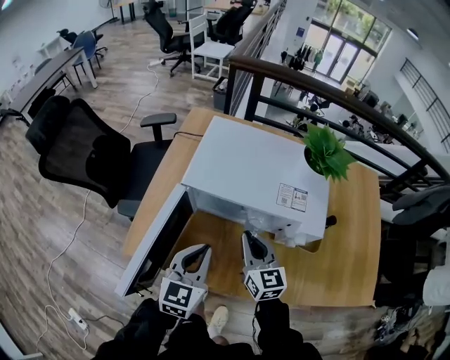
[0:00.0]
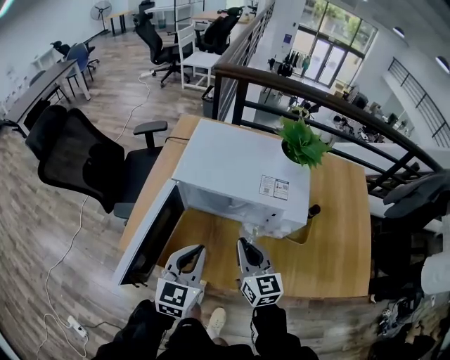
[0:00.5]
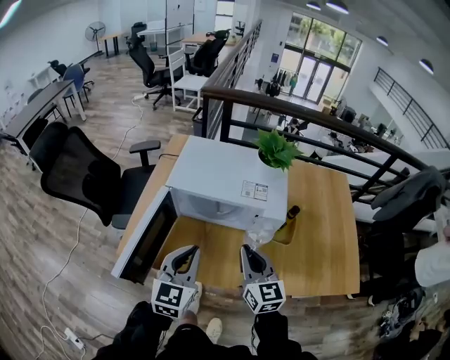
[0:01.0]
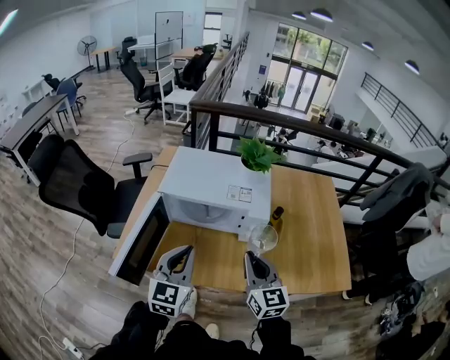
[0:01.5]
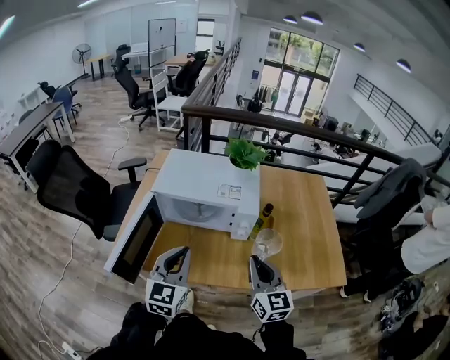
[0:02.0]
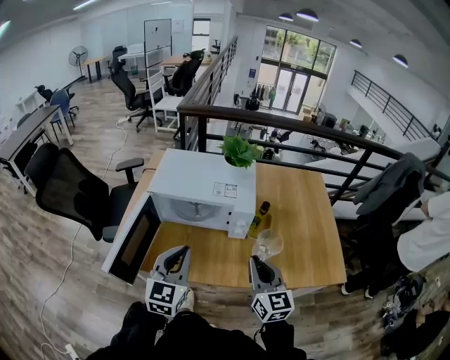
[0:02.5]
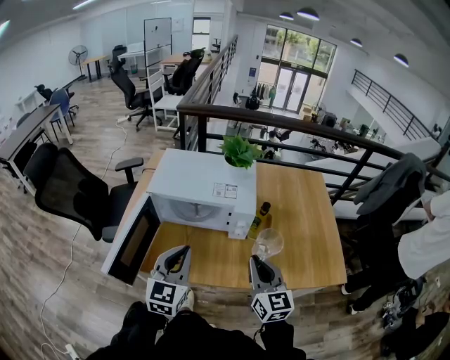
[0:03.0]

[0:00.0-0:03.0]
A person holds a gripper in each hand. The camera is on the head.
0:00.0 to 0:01.5: The left gripper travels upward, backward and to the right by about 15 cm, while the right gripper goes approximately 25 cm backward, to the right and upward.
0:01.5 to 0:03.0: The right gripper travels to the right by about 5 cm.

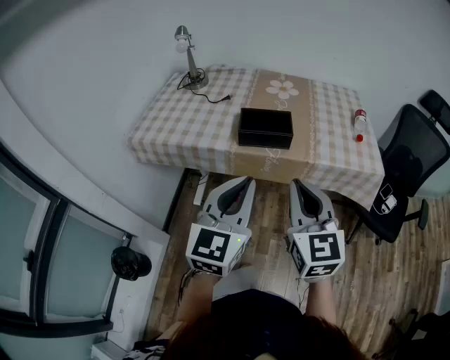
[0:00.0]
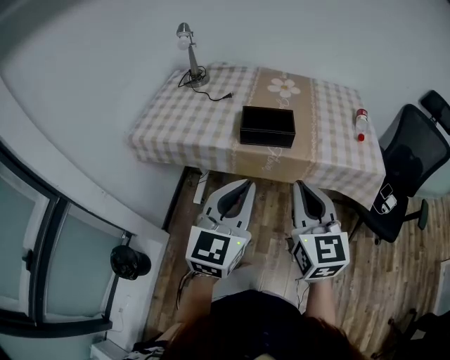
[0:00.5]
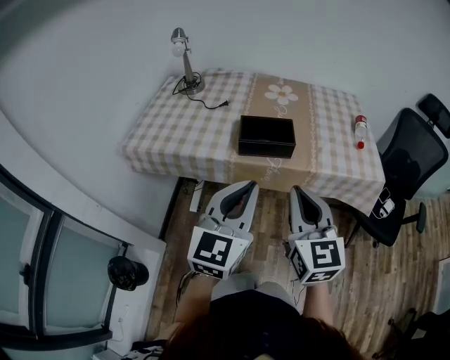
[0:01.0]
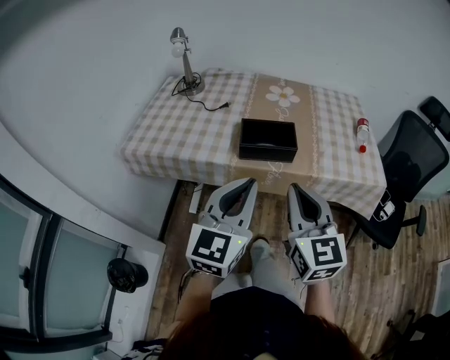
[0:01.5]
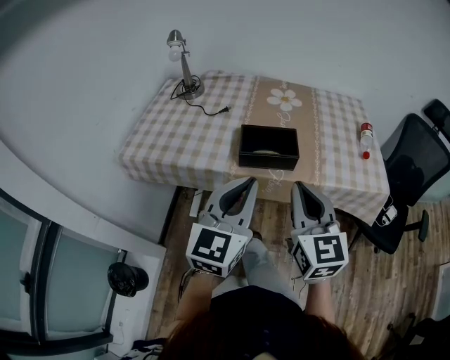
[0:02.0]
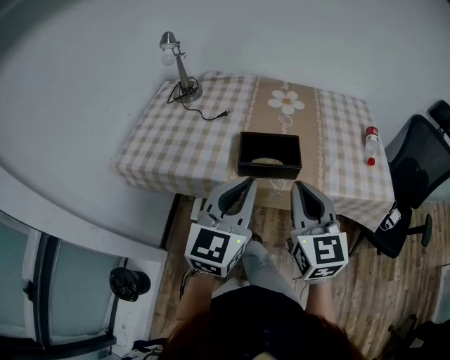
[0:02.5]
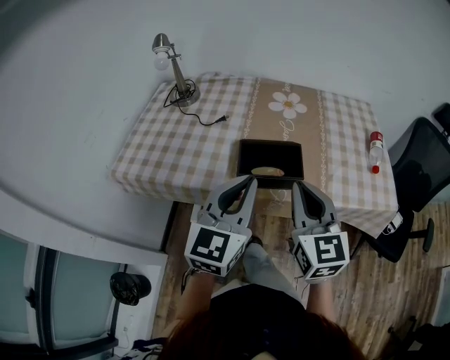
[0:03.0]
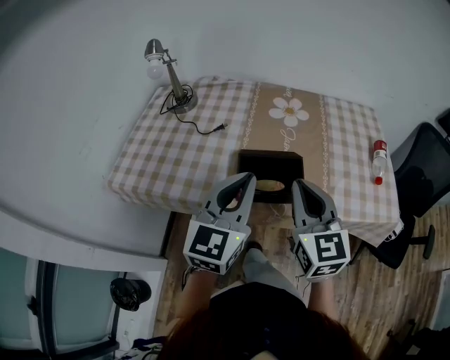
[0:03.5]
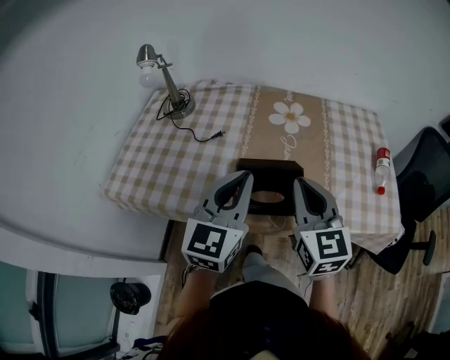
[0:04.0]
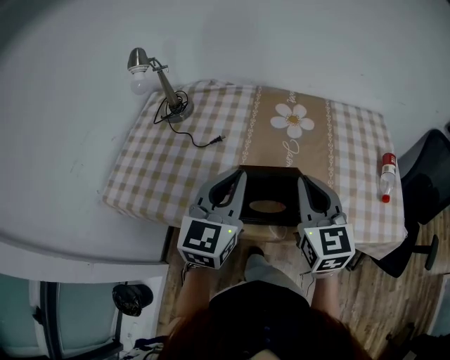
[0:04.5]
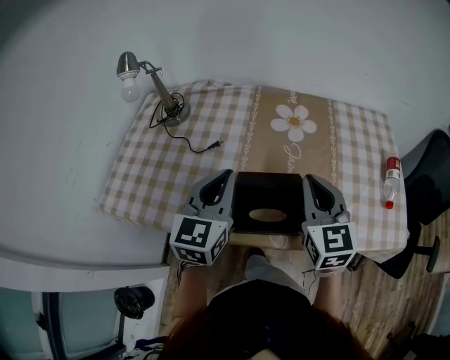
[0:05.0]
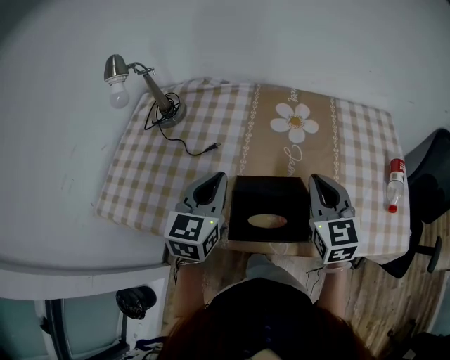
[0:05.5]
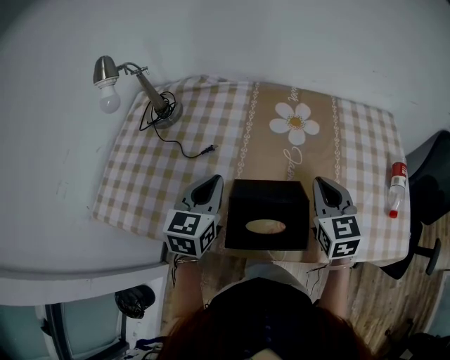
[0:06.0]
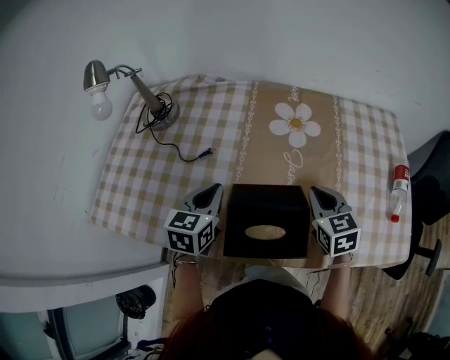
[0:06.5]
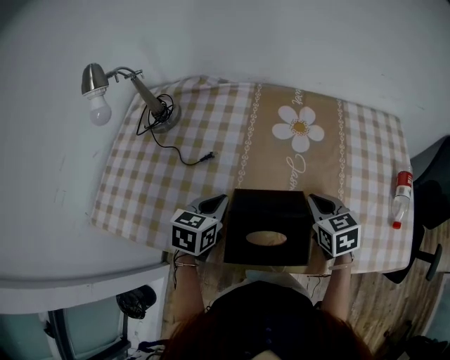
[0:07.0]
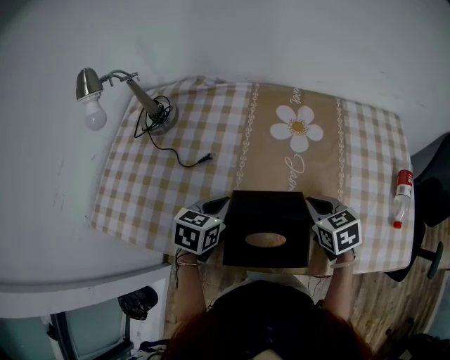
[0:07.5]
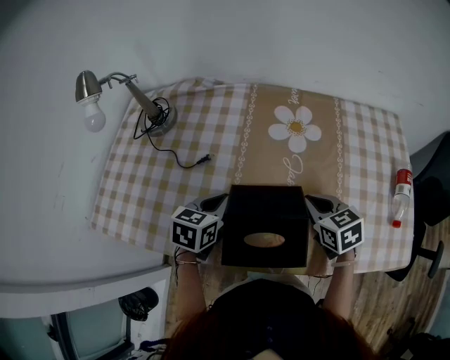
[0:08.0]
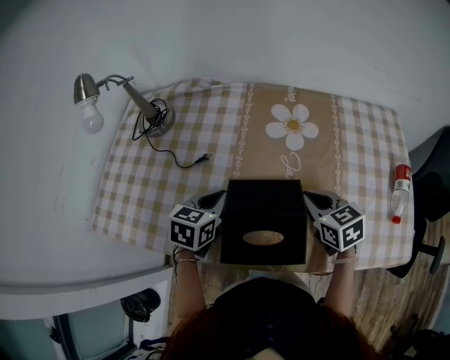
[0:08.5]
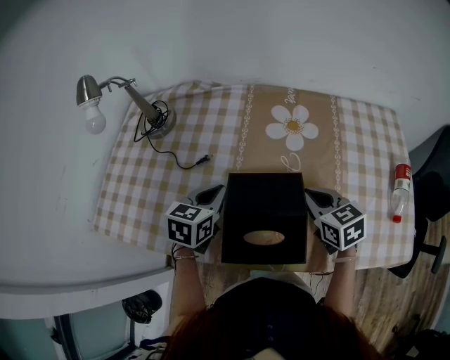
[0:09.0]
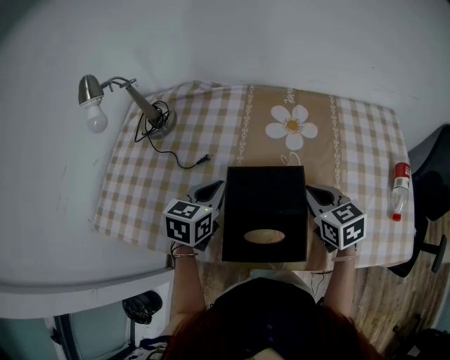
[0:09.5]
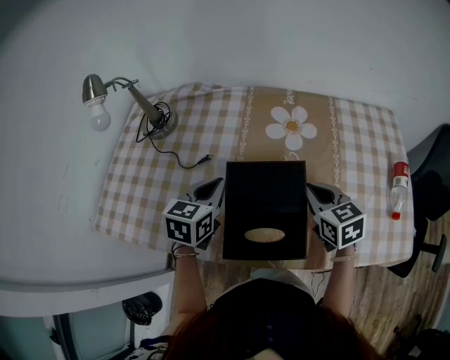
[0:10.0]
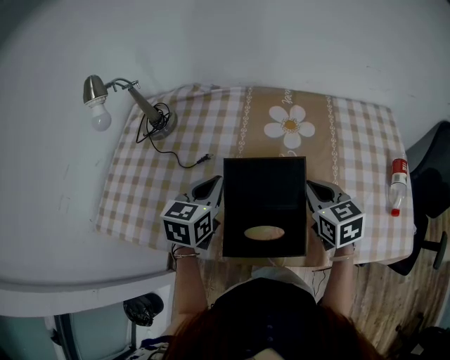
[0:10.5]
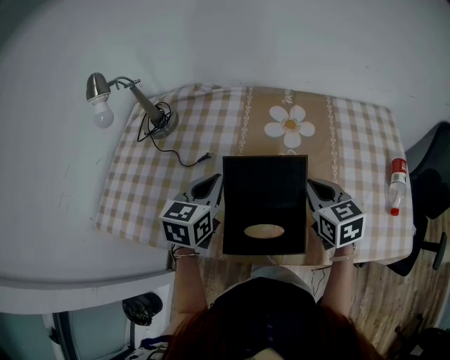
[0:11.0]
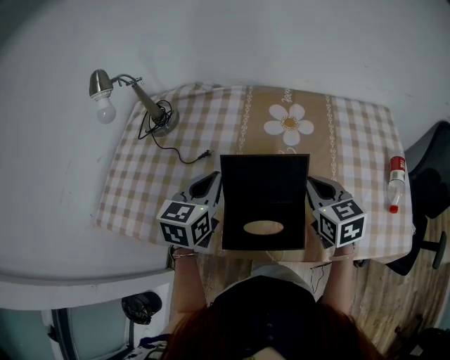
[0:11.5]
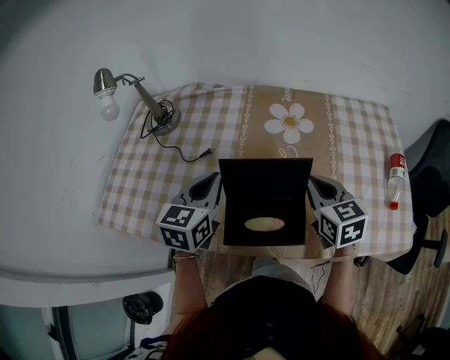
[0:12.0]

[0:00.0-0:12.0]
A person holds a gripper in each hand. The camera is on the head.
0:00.0 to 0:02.0: Both grippers travel together forward, approximately 10 cm.
0:02.0 to 0:04.0: Both grippers travel together forward, about 20 cm.
0:04.0 to 0:06.0: The left gripper is displaced forward, downward and to the left by about 20 cm, and turns by about 20 degrees. The right gripper heads forward, downward and to the right, covering approximately 20 cm.
0:06.0 to 0:08.0: Both grippers travel together downward, approximately 10 cm. The left gripper swivels about 20 degrees. Meanwhile the right gripper rotates about 30 degrees.
0:08.0 to 0:10.0: The left gripper moves upward, approximately 5 cm.
0:10.0 to 0:12.0: The left gripper moves upward, some 5 cm.

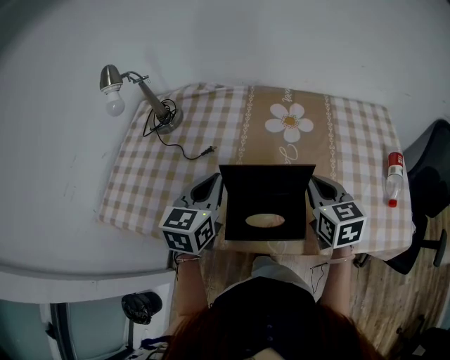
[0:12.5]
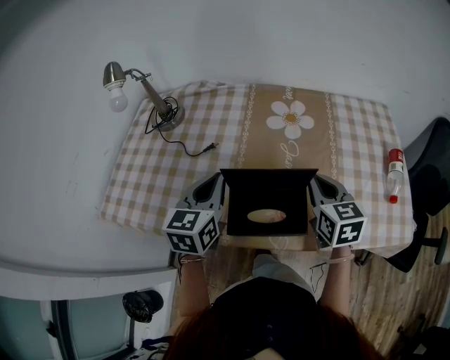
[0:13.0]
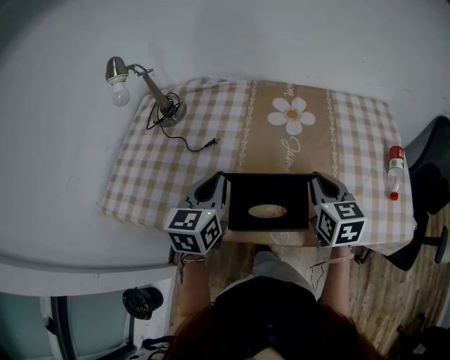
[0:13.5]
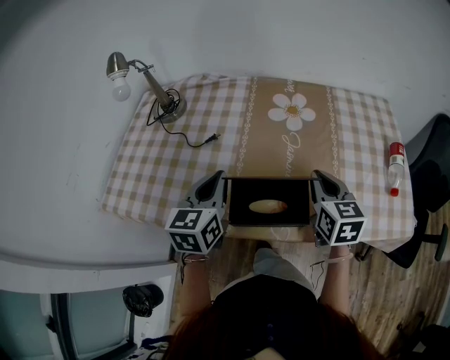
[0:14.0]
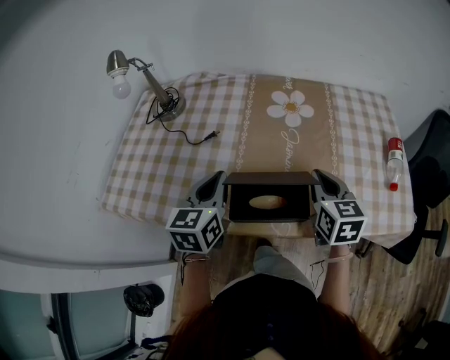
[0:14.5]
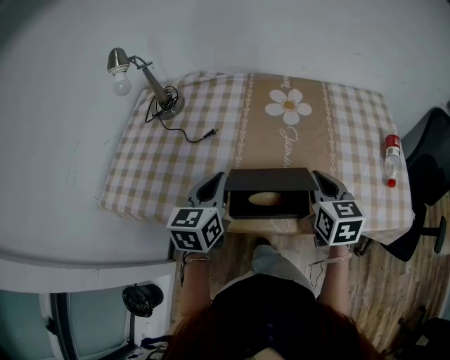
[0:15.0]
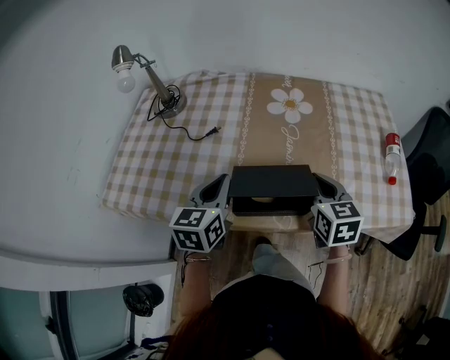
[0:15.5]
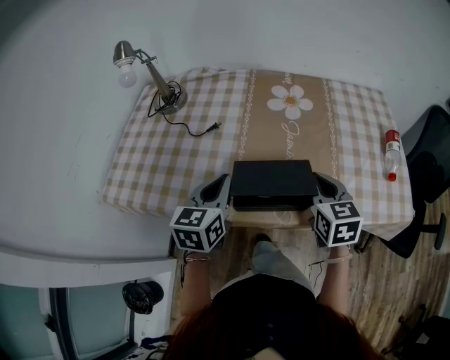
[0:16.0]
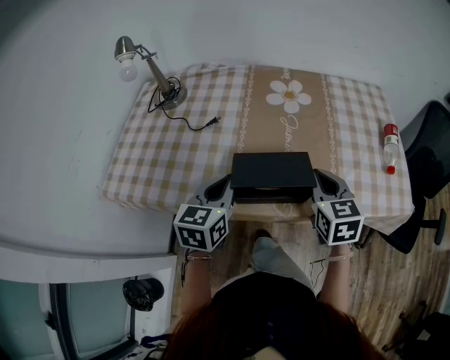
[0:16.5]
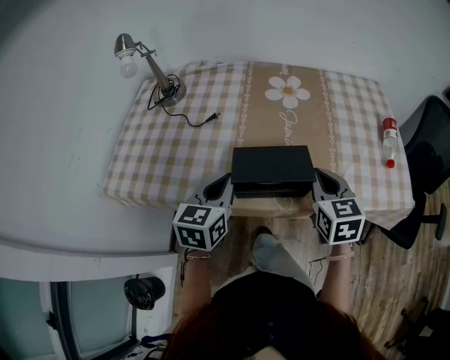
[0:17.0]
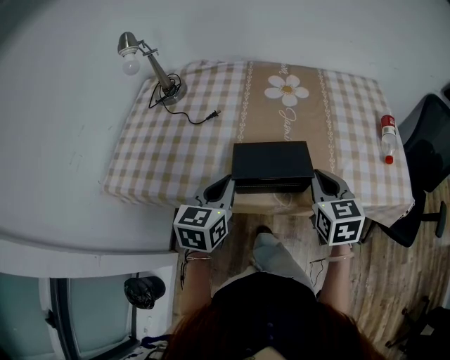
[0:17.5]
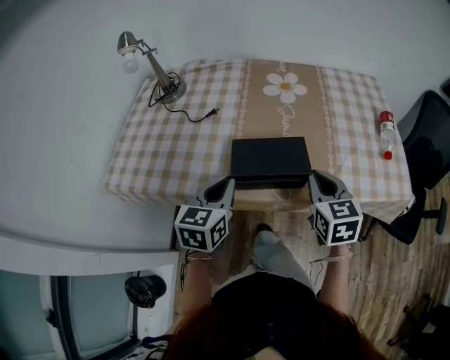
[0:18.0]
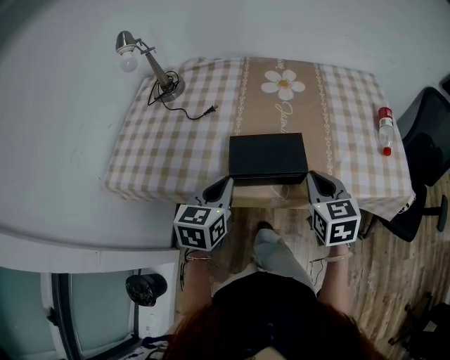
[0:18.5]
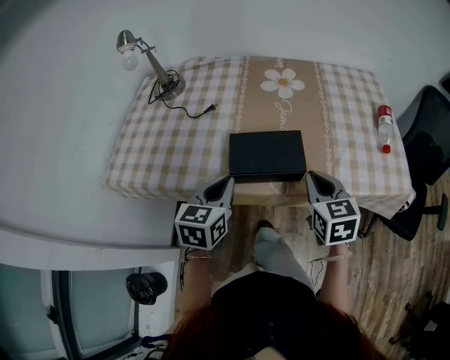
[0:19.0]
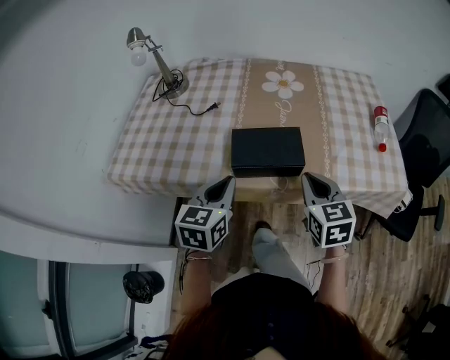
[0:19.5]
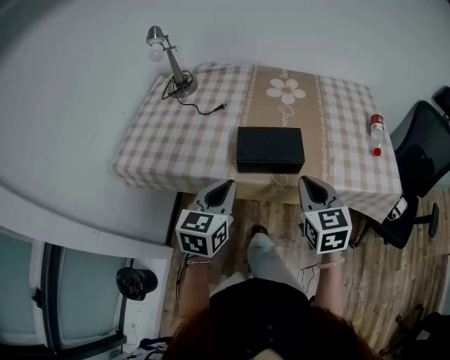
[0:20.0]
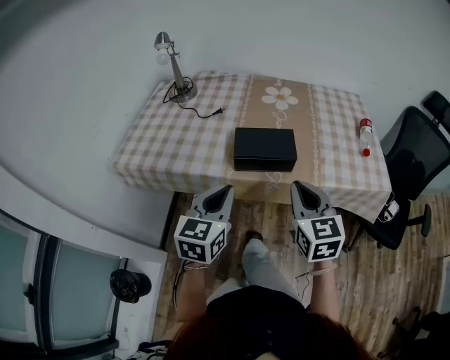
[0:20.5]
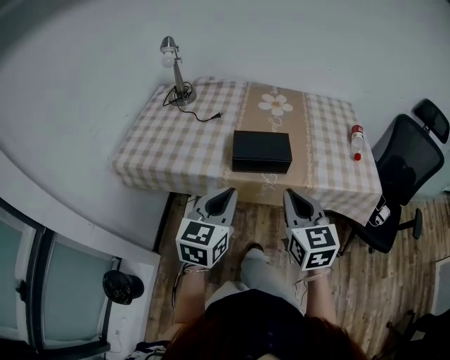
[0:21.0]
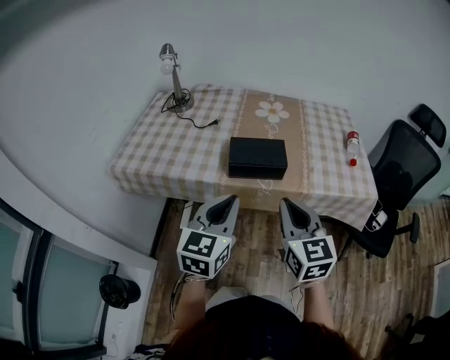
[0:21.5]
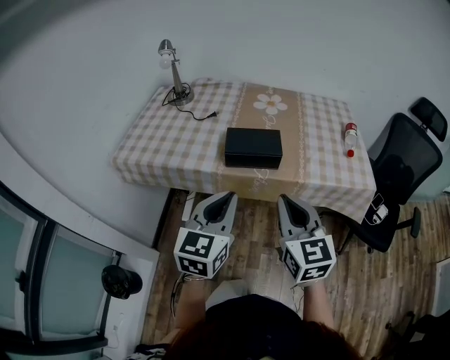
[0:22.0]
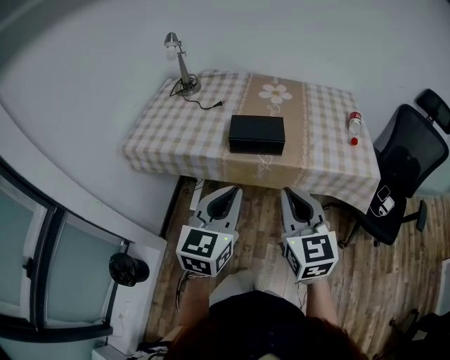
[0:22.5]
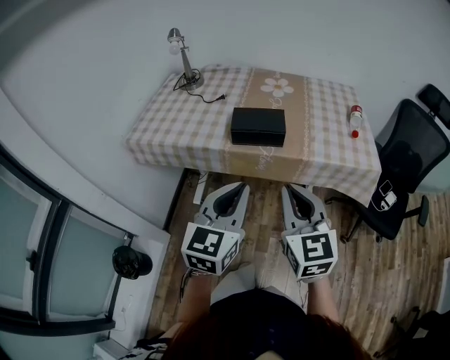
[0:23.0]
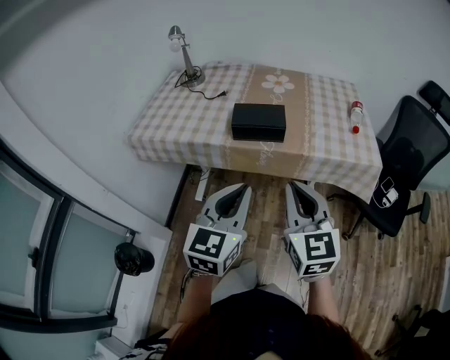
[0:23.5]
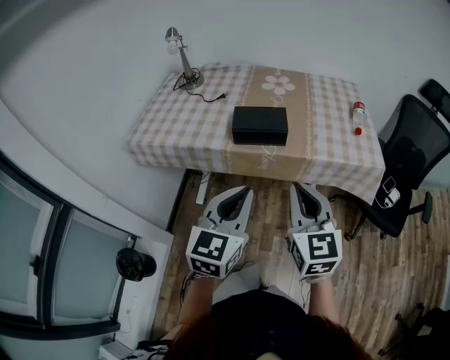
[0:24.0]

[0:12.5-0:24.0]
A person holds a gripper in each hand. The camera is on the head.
0:12.5 to 0:14.5: There are only small adjustments of the grippers.
0:14.5 to 0:16.5: The two grippers go some 5 cm backward.
0:16.5 to 0:18.5: The grippers both shift backward by roughly 5 cm.
0:18.5 to 0:20.0: The grippers both shift backward by roughly 5 cm.
0:20.0 to 0:22.0: The left gripper is displaced backward, upward and to the right by some 15 cm. Meanwhile the right gripper heads backward and upward, covering about 15 cm.
0:22.0 to 0:24.0: The grippers both shift backward by about 5 cm.
